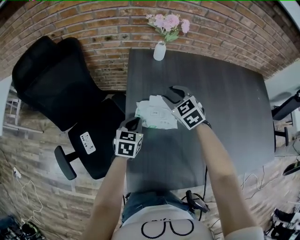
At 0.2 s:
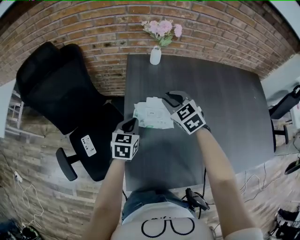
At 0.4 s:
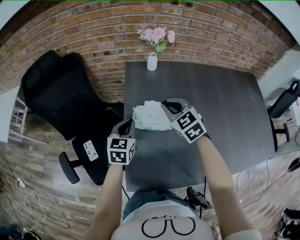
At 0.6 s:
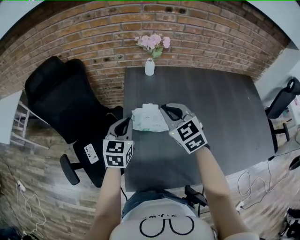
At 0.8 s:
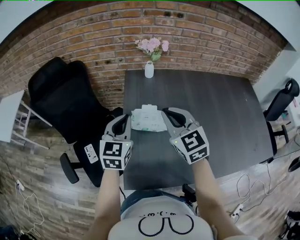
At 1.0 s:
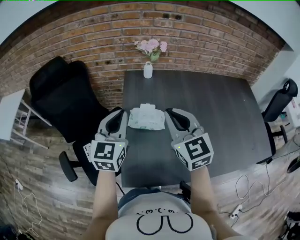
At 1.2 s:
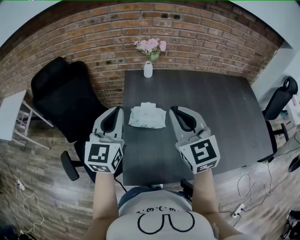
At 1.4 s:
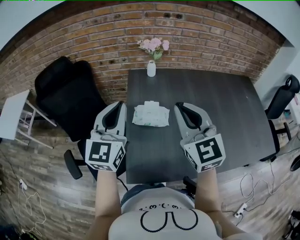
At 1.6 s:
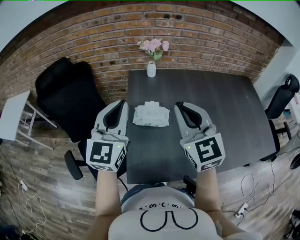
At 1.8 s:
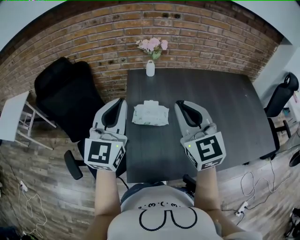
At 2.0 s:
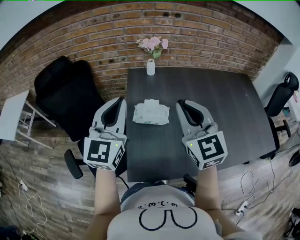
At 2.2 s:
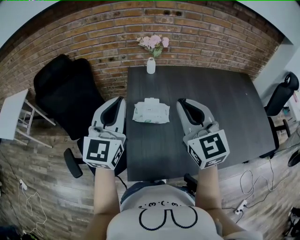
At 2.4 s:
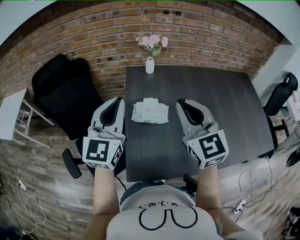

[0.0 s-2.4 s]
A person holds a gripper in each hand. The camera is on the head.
0.0 to 1.2 s: The right gripper goes roughly 35 cm upward and backward, tips its fingers upward by roughly 30 degrees, and closes up. The left gripper is displaced upward by roughly 30 cm, and tips its fingers upward by about 40 degrees.
1.2 to 2.4 s: The grippers stay close to where they were, moving slightly.

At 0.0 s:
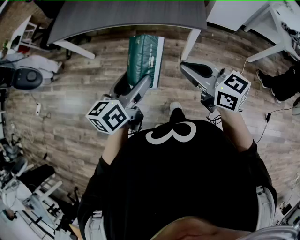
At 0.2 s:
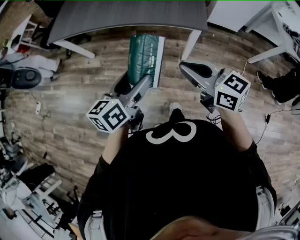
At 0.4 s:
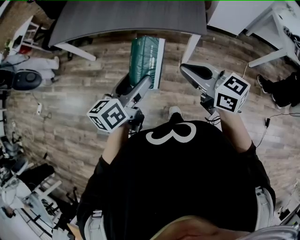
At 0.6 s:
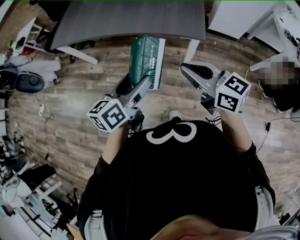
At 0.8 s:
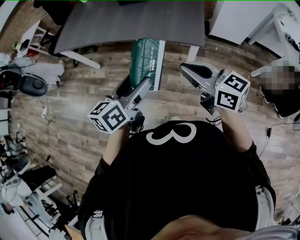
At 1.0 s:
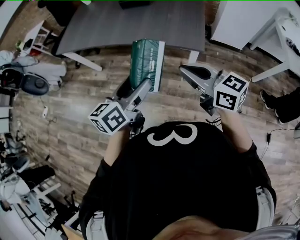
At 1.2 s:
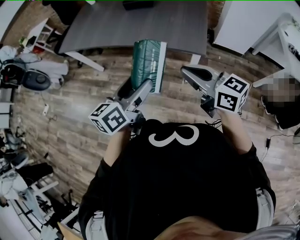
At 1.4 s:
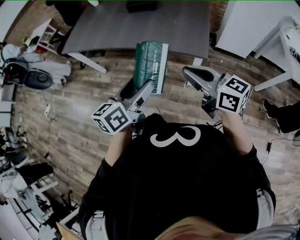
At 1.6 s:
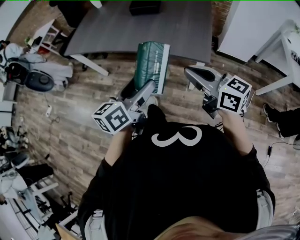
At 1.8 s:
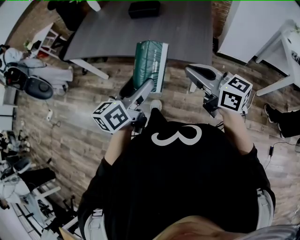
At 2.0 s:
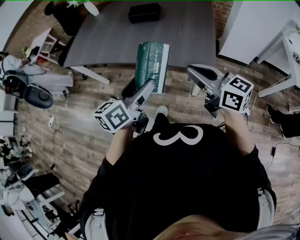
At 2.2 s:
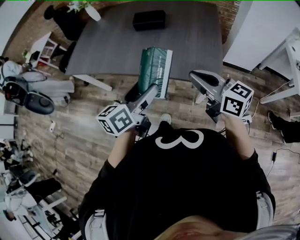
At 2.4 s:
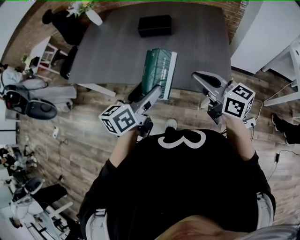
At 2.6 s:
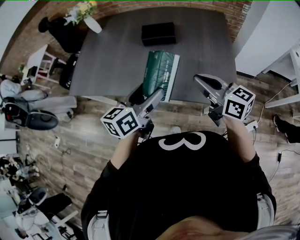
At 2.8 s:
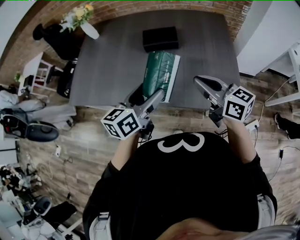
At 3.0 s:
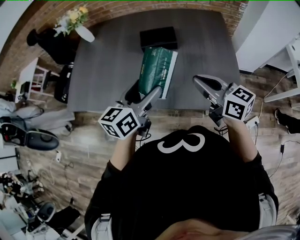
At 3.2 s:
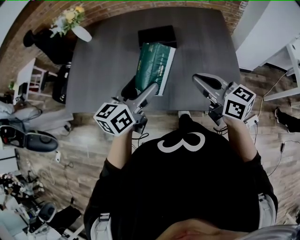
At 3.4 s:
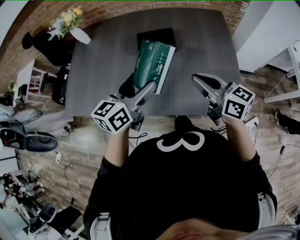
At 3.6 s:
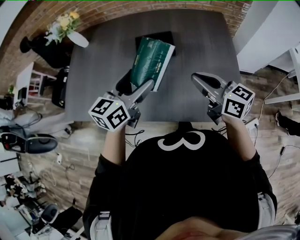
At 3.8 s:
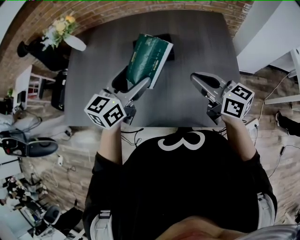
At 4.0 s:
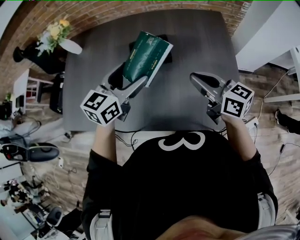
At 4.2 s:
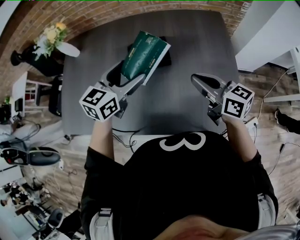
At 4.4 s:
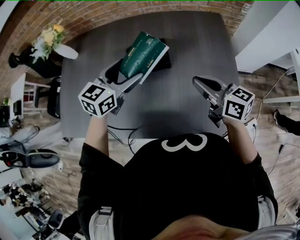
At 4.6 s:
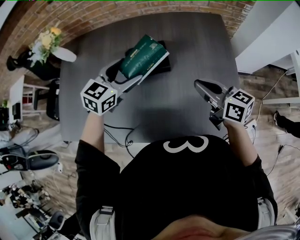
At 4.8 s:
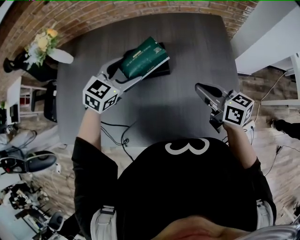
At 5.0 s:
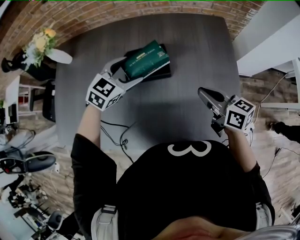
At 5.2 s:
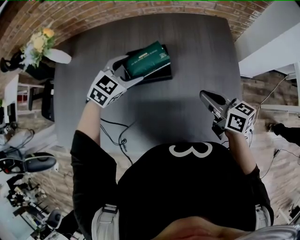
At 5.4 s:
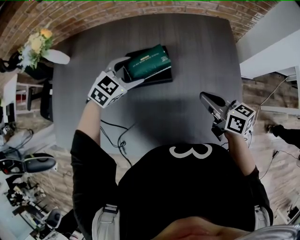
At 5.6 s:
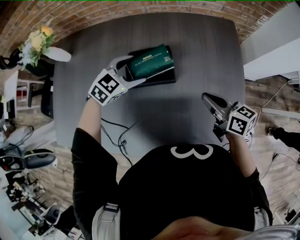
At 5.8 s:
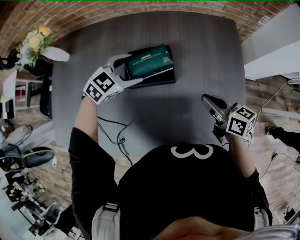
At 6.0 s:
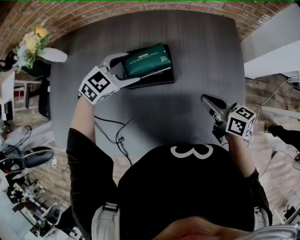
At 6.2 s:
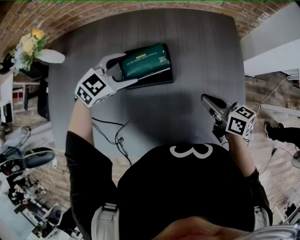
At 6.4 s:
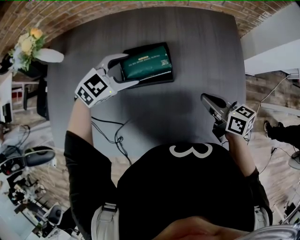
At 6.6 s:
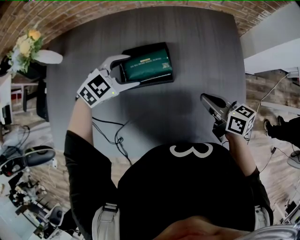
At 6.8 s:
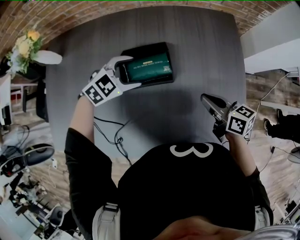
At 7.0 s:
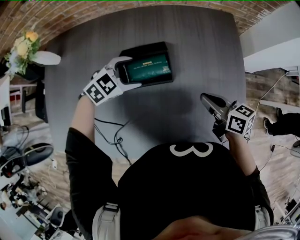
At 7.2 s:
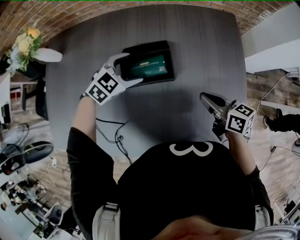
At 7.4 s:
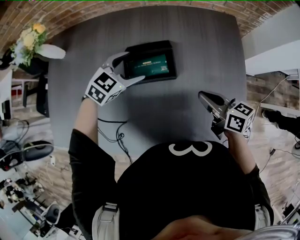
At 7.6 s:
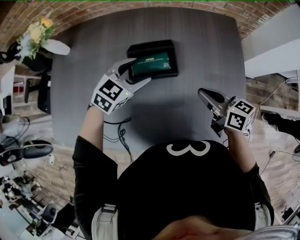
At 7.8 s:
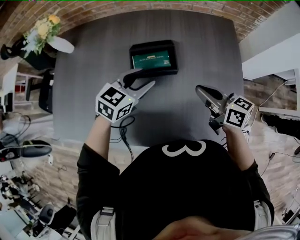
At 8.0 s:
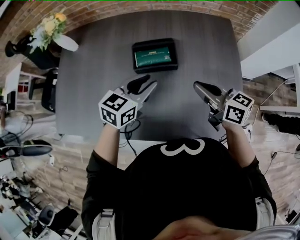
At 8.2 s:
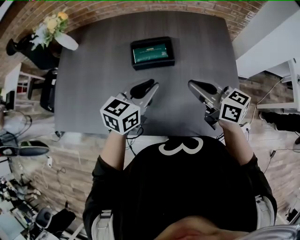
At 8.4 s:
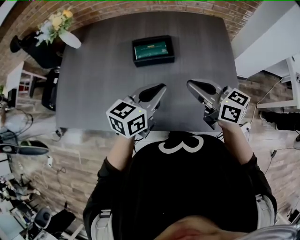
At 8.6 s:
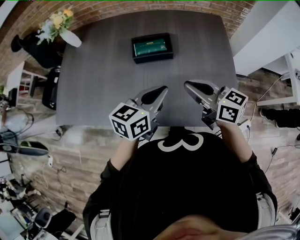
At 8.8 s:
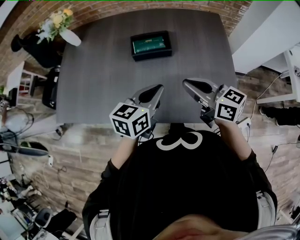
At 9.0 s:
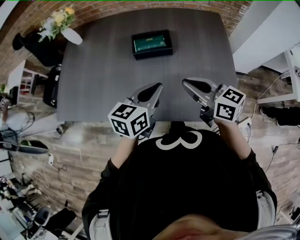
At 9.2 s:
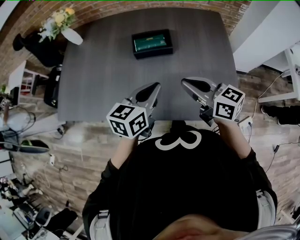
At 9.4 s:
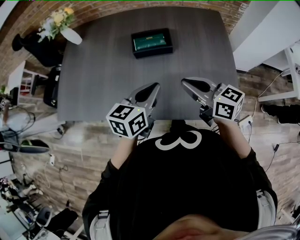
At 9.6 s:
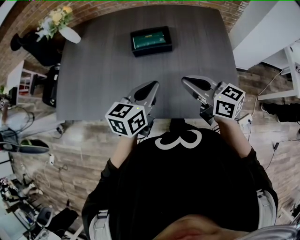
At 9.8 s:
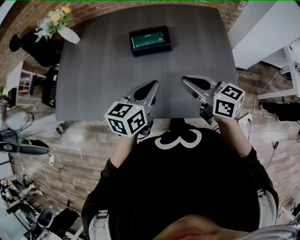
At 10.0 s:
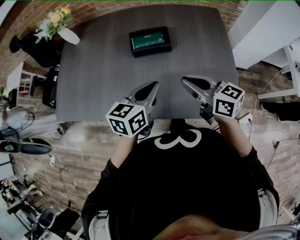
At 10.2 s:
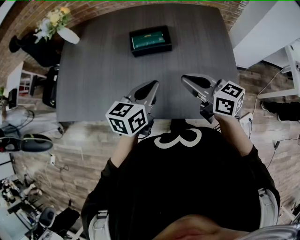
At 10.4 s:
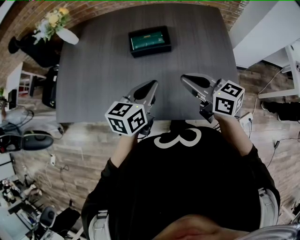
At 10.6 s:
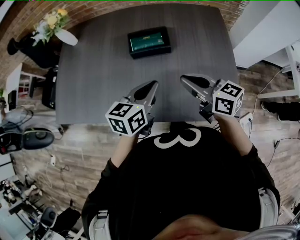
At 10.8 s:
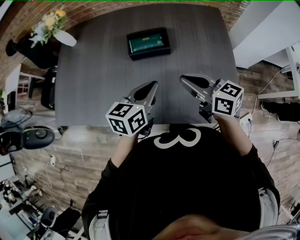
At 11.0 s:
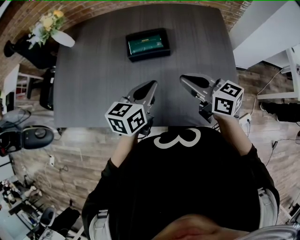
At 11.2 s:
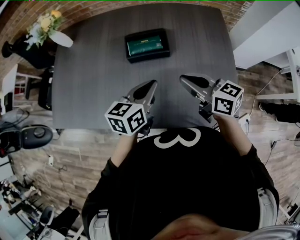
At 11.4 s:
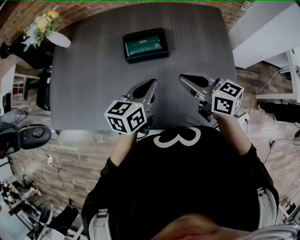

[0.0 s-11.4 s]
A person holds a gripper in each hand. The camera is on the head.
0.0 to 1.4 s: The right gripper is displaced forward and to the right by roughly 10 cm; the left gripper moves to the right and forward, approximately 10 cm.
1.4 to 2.8 s: Both grippers travel together forward, roughly 35 cm.
2.8 to 4.2 s: Both grippers move forward, about 20 cm. The left gripper swivels approximately 30 degrees.
4.2 to 5.6 s: The right gripper is displaced downward and forward by approximately 10 cm. The left gripper shifts about 20 cm forward and downward, and changes its angle by about 30 degrees.
5.6 to 7.2 s: The grippers move only a little.
7.2 to 8.6 s: The left gripper moves backward and upward, roughly 30 cm, twists roughly 40 degrees counterclockwise, seen from behind, and closes its fingers. Meanwhile the right gripper is displaced backward, upward and to the left by roughly 20 cm, and swivels some 20 degrees.
8.6 to 10.0 s: The grippers stay close to where they were, moving slightly.
10.0 to 11.4 s: The grippers both shift forward by some 5 cm.

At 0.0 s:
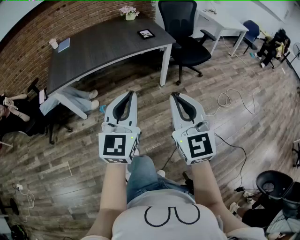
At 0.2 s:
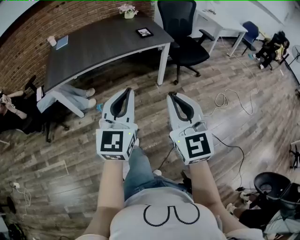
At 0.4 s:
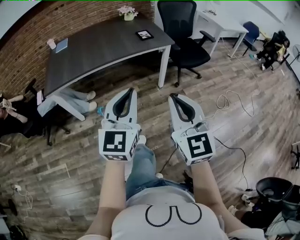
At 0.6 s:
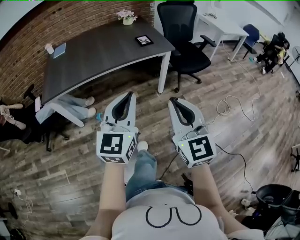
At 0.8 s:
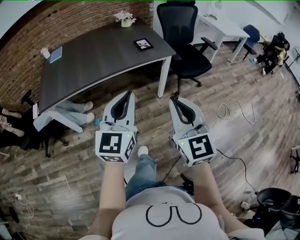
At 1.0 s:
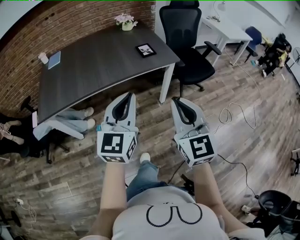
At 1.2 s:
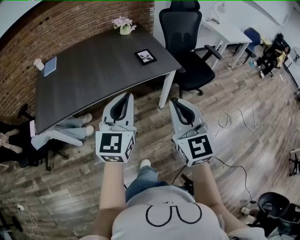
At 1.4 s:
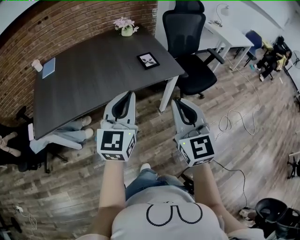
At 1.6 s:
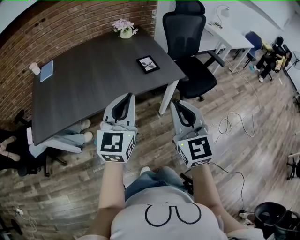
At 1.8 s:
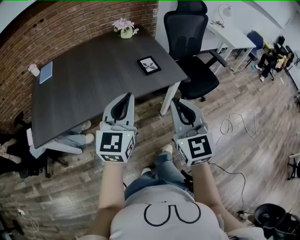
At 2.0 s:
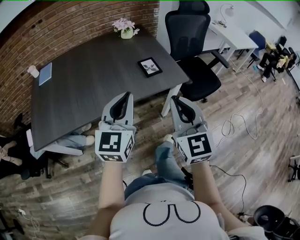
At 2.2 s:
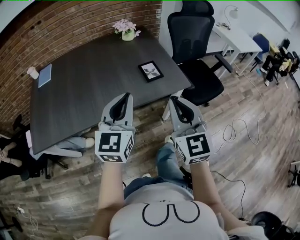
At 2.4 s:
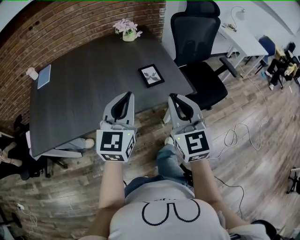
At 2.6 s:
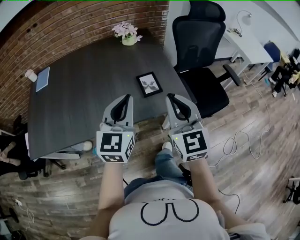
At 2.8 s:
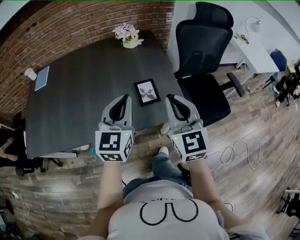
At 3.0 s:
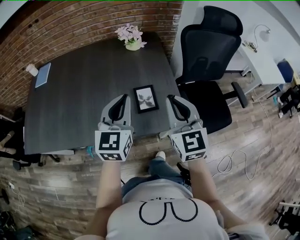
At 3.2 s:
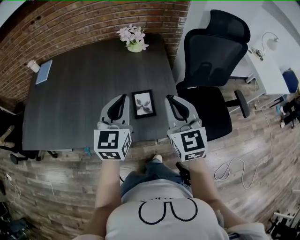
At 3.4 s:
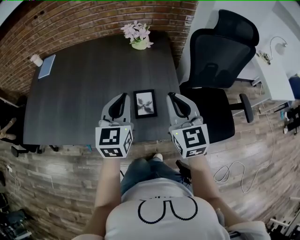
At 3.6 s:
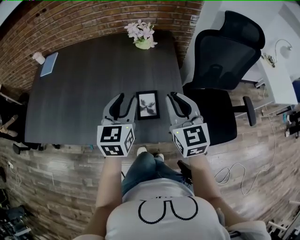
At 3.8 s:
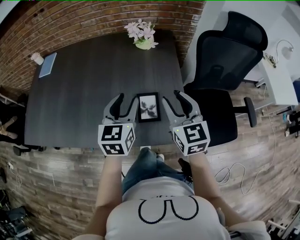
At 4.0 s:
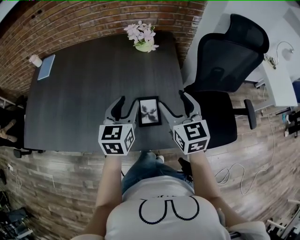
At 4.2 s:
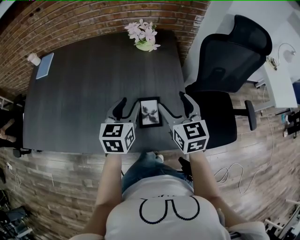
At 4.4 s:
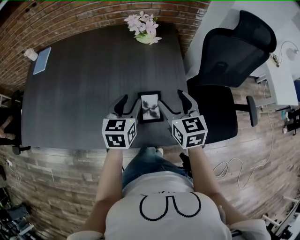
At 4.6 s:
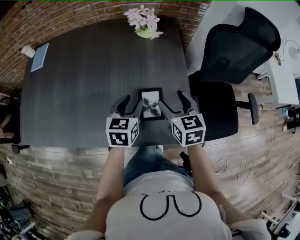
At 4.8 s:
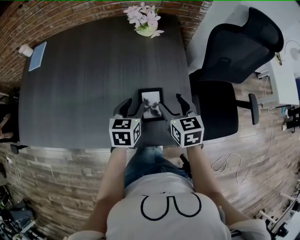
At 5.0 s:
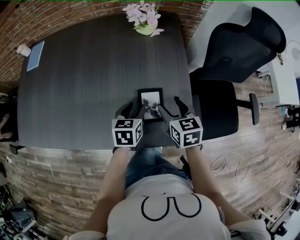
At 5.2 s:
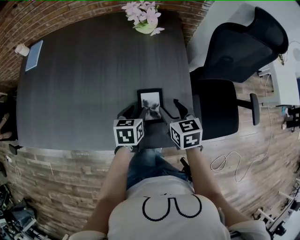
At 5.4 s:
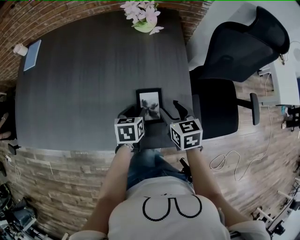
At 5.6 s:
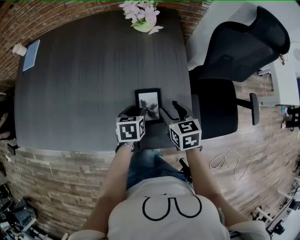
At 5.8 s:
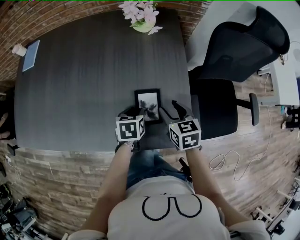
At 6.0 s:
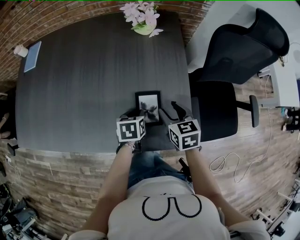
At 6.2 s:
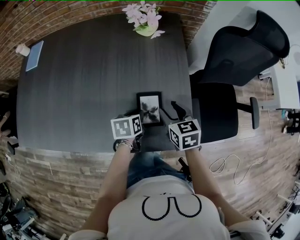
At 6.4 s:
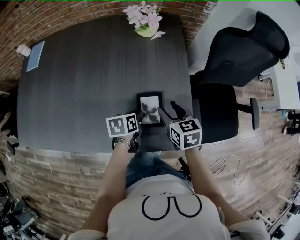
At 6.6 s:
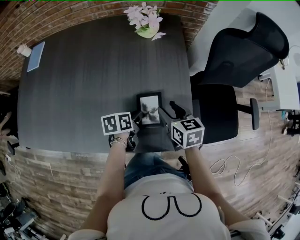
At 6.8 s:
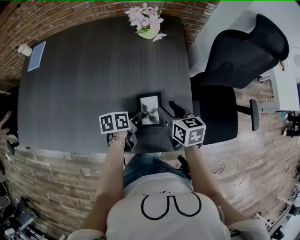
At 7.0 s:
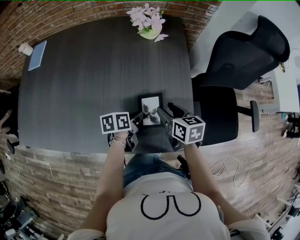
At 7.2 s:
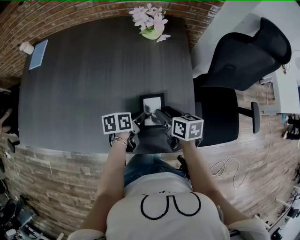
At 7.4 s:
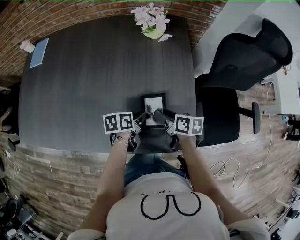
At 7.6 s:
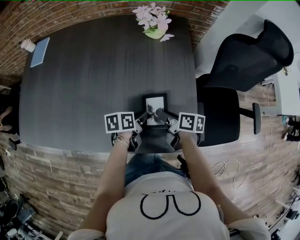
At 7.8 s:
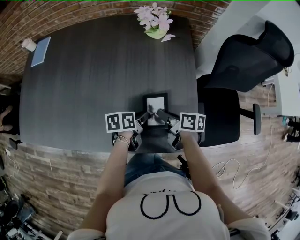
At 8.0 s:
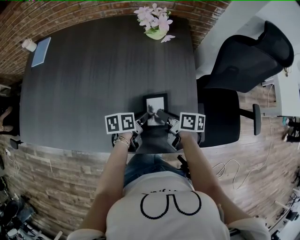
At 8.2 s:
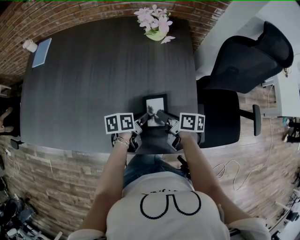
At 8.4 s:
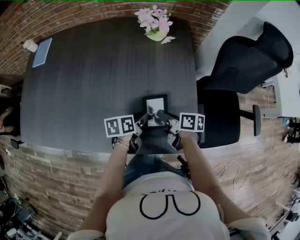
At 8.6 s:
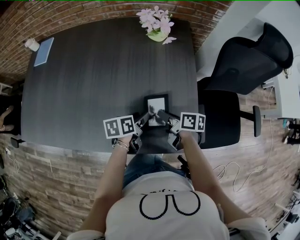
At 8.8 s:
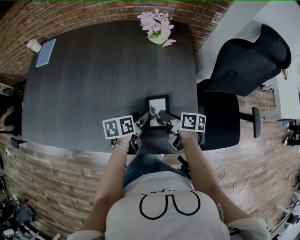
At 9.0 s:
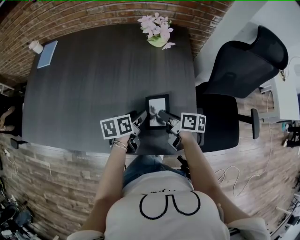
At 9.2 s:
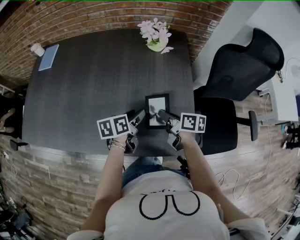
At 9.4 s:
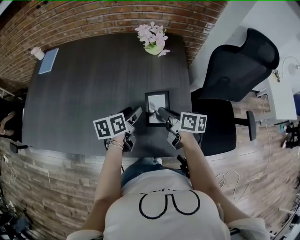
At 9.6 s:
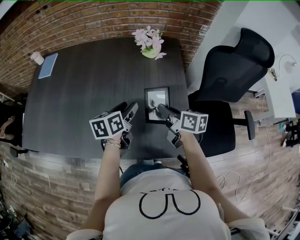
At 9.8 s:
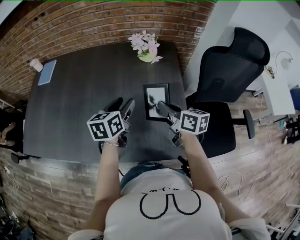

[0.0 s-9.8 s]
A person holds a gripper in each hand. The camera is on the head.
0.0 to 1.4 s: Both grippers travel together forward, about 40 cm.
1.4 to 2.8 s: The grippers both shift forward by approximately 35 cm.
2.8 to 4.2 s: The grippers both shift forward and downward by roughly 20 cm. The right gripper rotates roughly 20 degrees, and opens. Meanwhile the left gripper swivels some 20 degrees, and opens up.
4.2 to 5.6 s: The two grippers go approximately 15 cm downward. The left gripper points its fingers roughly 30 degrees further downward. The right gripper changes its angle by approximately 20 degrees.
5.6 to 7.0 s: The left gripper turns by roughly 30 degrees.
7.0 to 8.4 s: The right gripper shifts by about 5 cm, changes its angle by some 40 degrees, and closes.
8.4 to 9.8 s: Both grippers move upward, approximately 15 cm. The right gripper swivels some 30 degrees. The left gripper rotates some 40 degrees.
